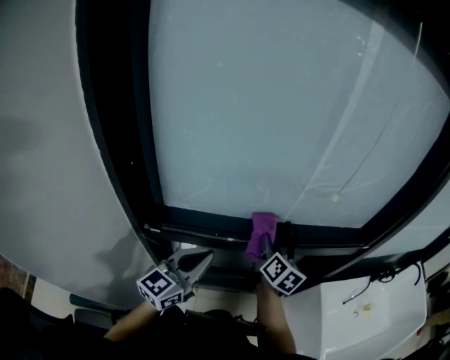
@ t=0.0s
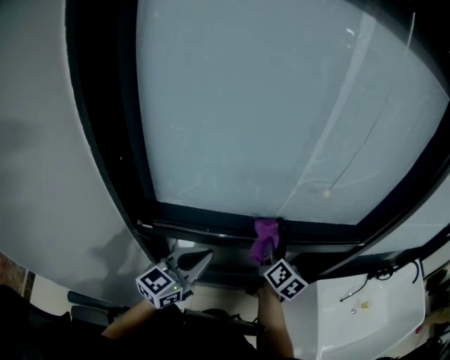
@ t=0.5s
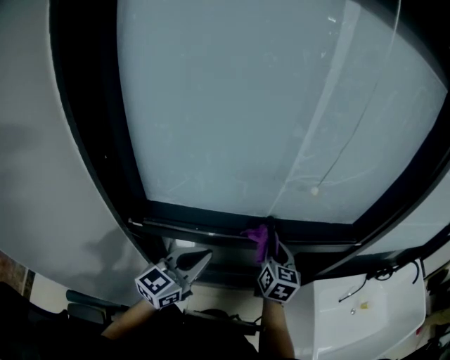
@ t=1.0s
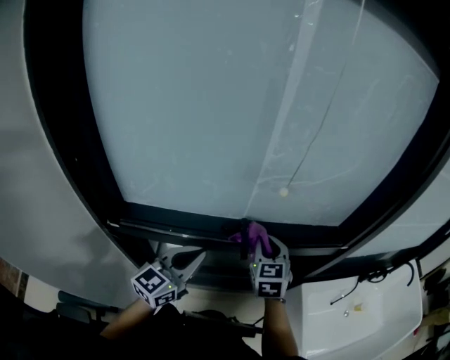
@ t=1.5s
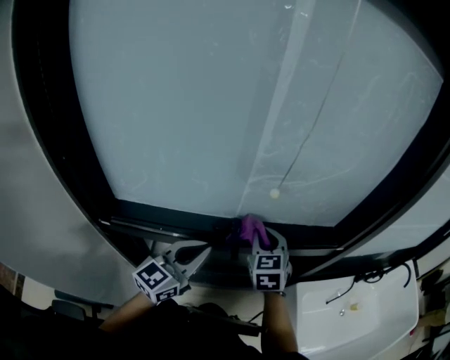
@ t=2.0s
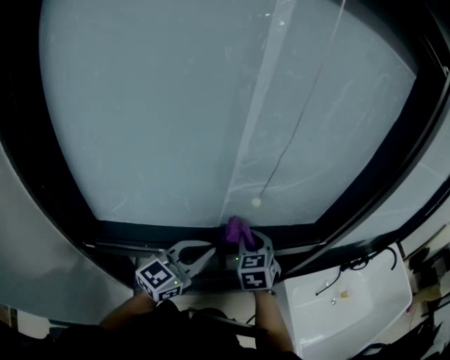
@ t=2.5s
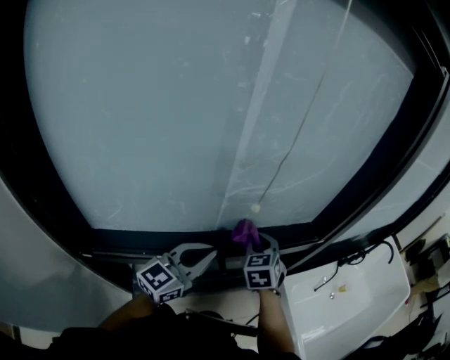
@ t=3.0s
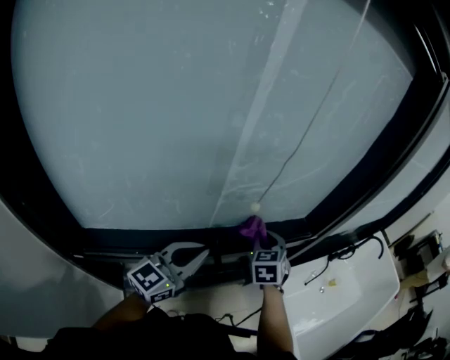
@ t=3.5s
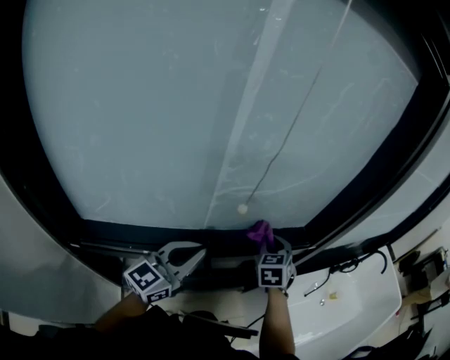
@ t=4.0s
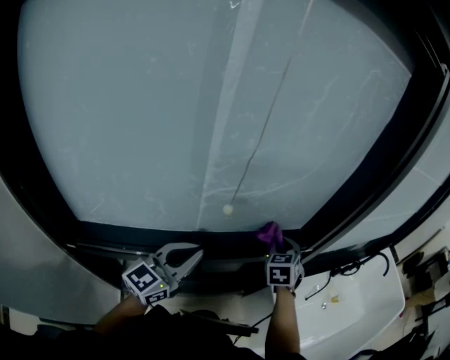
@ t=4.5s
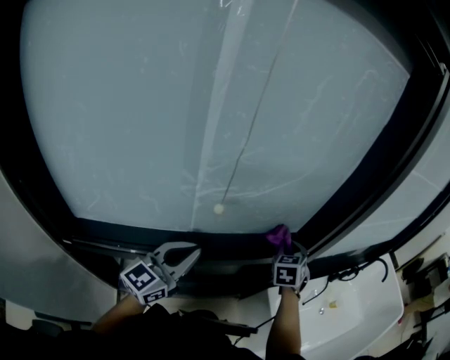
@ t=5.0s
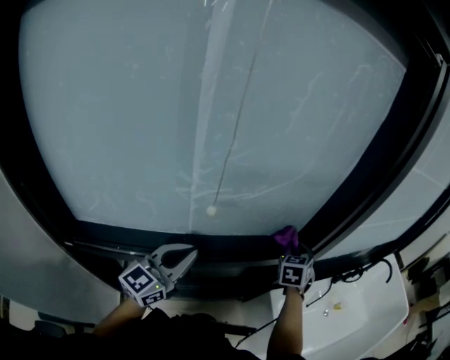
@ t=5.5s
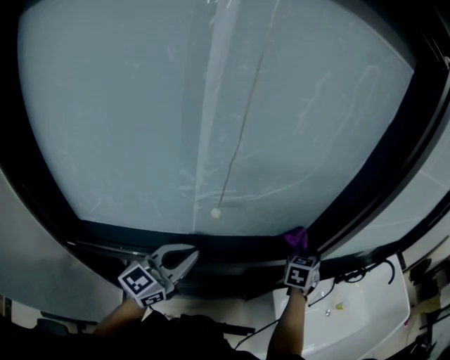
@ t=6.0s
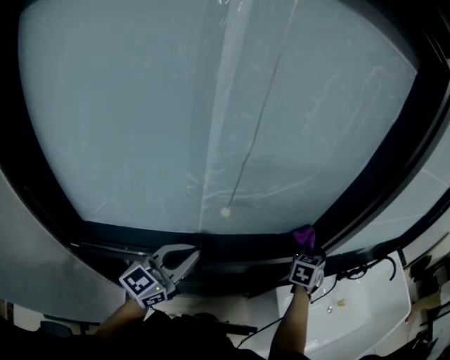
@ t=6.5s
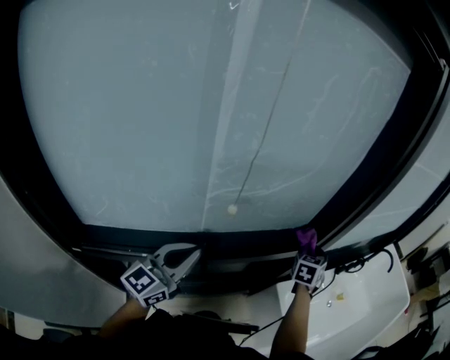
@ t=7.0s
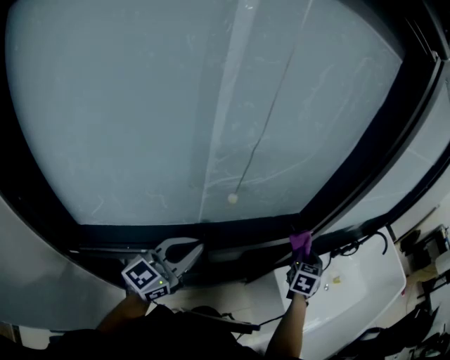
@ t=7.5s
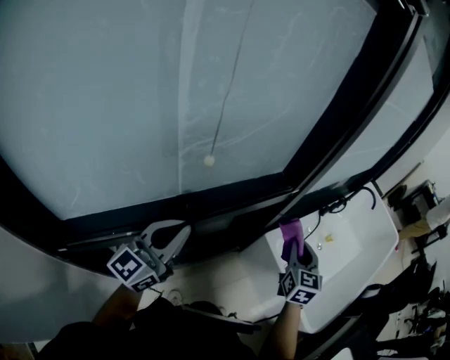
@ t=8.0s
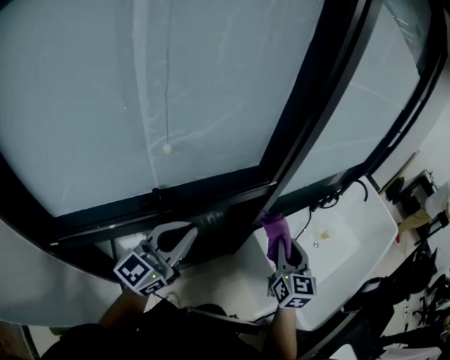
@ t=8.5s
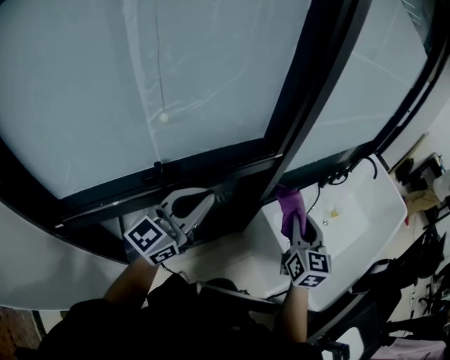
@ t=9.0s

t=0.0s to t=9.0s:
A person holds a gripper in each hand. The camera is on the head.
t=0.0s to t=2.0s: The two grippers go about 15 cm to the right and forward. The right gripper rolls counterclockwise, seen from behind, by roughly 50 degrees.
t=2.0s to t=4.5s: The right gripper is displaced to the right and forward by approximately 20 cm, and changes its angle by about 20 degrees. The left gripper heads forward, covering approximately 5 cm.
t=4.5s to t=7.0s: The right gripper heads to the right and forward, covering some 15 cm, and swivels roughly 20 degrees.
t=7.0s to t=9.0s: The left gripper moves to the right, roughly 15 cm. The right gripper travels backward and to the right by roughly 25 cm, and changes its angle by approximately 30 degrees.

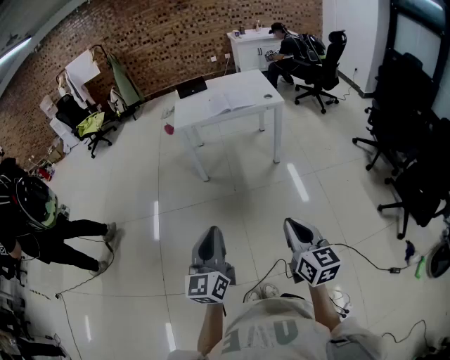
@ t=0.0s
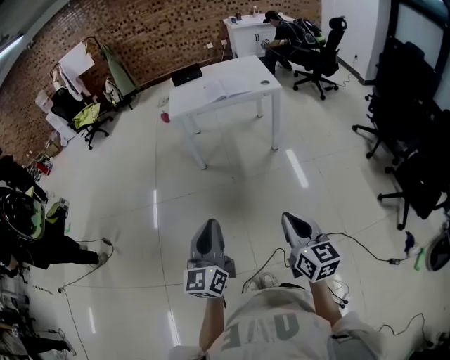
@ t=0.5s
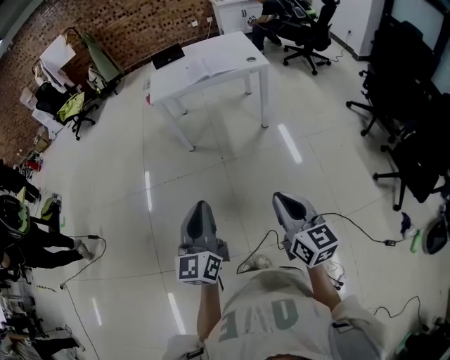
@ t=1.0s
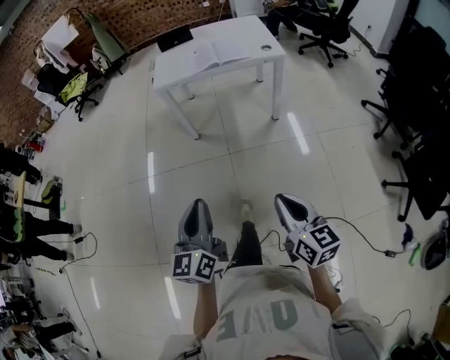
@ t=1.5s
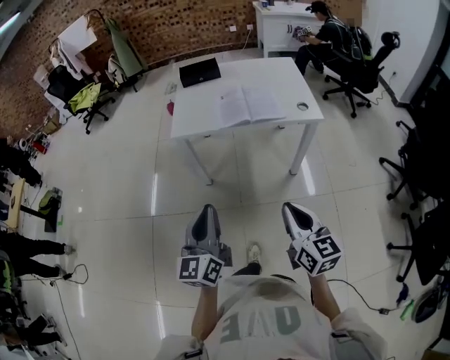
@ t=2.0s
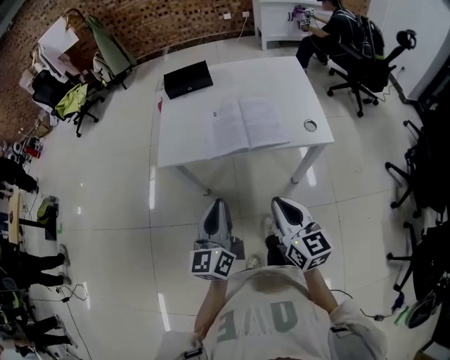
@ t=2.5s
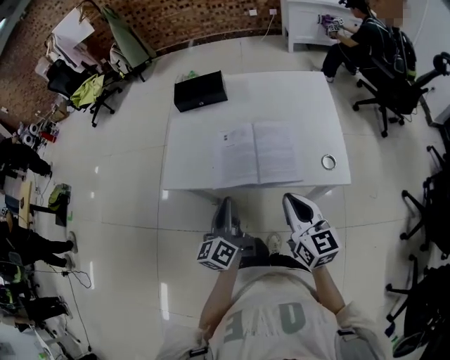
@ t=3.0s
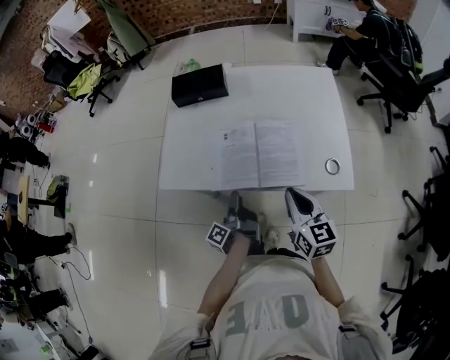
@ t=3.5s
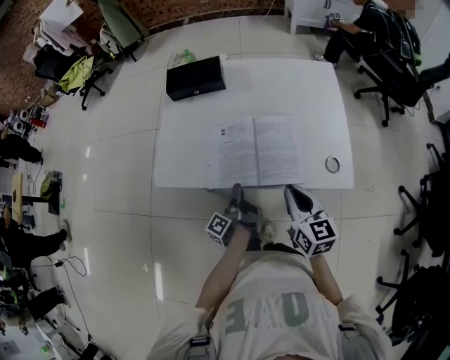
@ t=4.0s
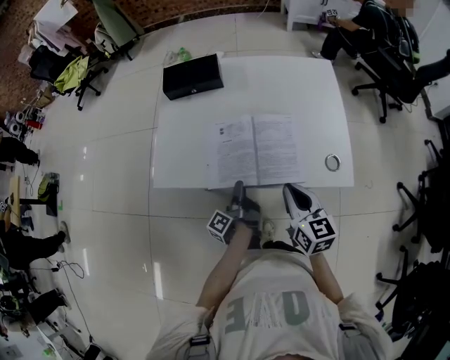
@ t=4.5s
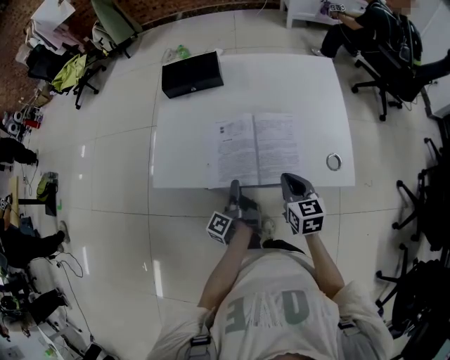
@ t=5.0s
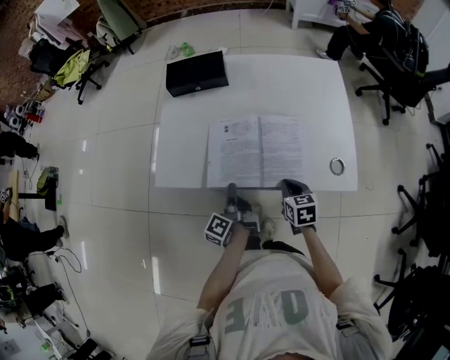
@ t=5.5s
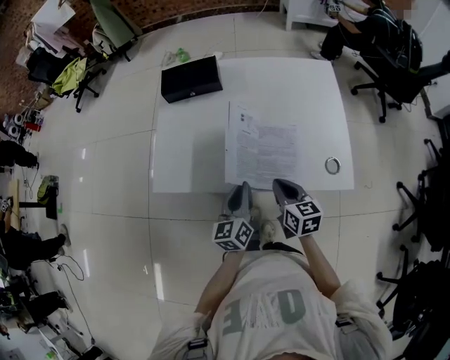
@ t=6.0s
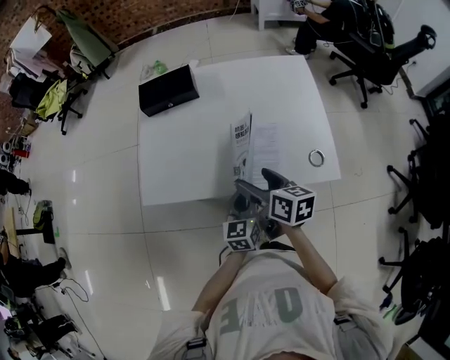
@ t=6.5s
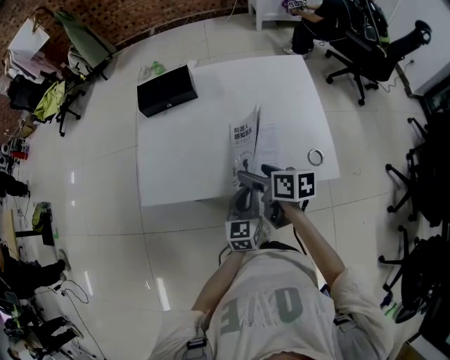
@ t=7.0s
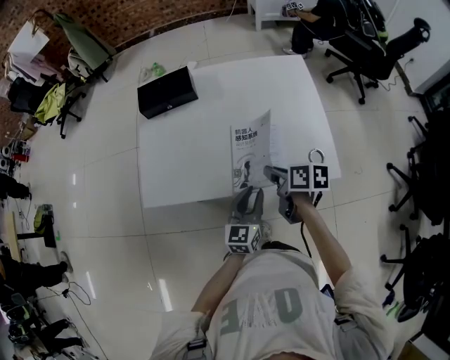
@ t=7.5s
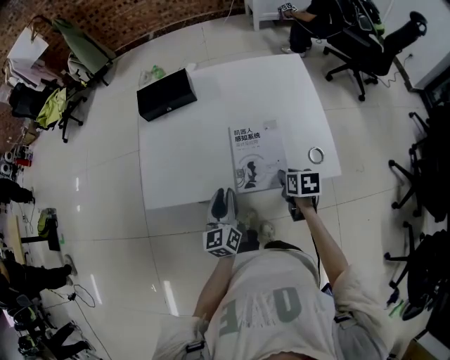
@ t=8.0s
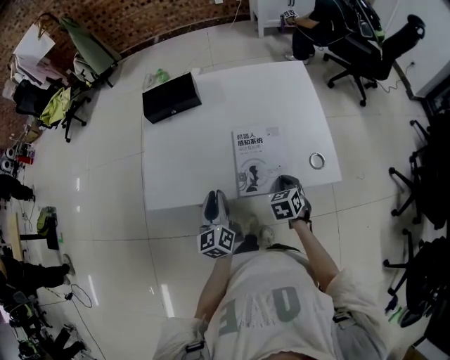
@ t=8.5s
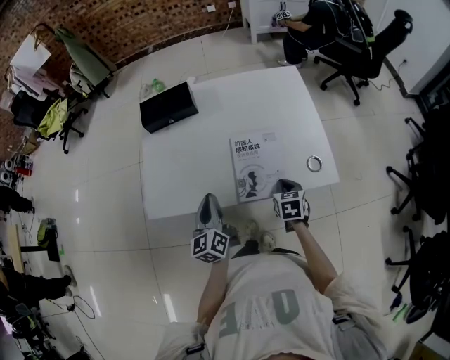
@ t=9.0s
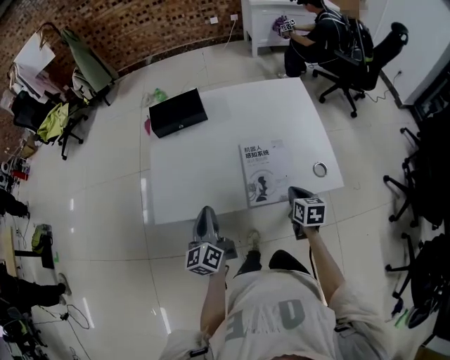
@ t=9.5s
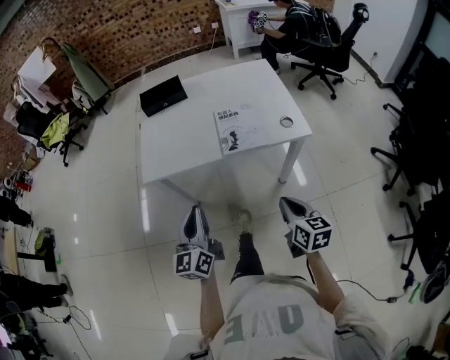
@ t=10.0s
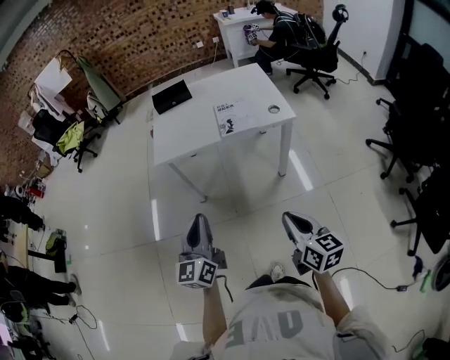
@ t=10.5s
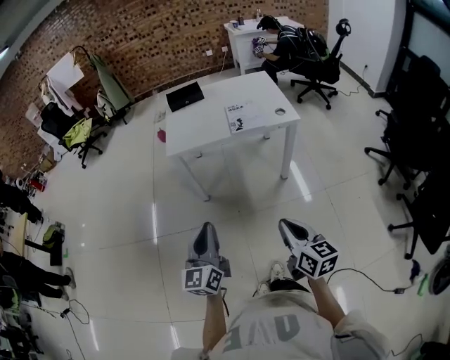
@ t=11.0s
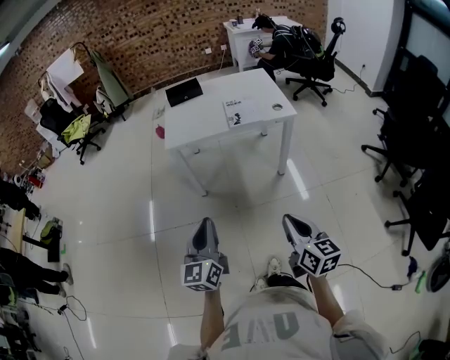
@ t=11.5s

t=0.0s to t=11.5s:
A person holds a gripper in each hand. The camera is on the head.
t=0.0s to t=2.0s: The two grippers travel together, forward, some 40 cm.
t=2.0s to t=4.0s: The pair of grippers is taken forward, approximately 40 cm. The left gripper goes approximately 25 cm downward, rotates around the line of its fingers by approximately 80 degrees, counterclockwise from behind, and opens up.
t=4.0s to t=6.0s: The left gripper shifts roughly 10 cm upward, rolls clockwise, seen from behind, by some 70 degrees, and closes up. The right gripper shifts roughly 10 cm downward.
t=6.0s to t=7.5s: The right gripper changes its angle by approximately 30 degrees, and opens and closes again. The left gripper shifts roughly 10 cm to the right, and changes its angle by about 20 degrees.
t=7.5s to t=9.5s: The left gripper shifts roughly 20 cm to the left, changes its angle by roughly 30 degrees, and closes; the right gripper travels downward and to the right by approximately 10 cm, and rotates some 30 degrees.
t=9.5s to t=11.5s: The pair of grippers is taken backward, approximately 60 cm. The right gripper angles its fingers upward, by roughly 30 degrees. Meanwhile the left gripper swivels some 20 degrees.

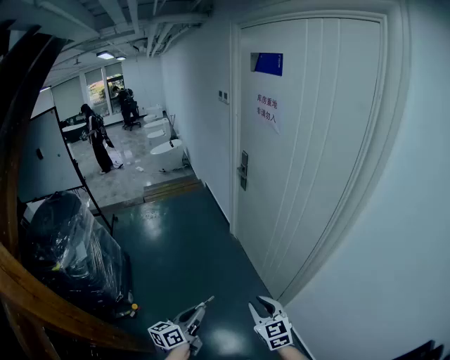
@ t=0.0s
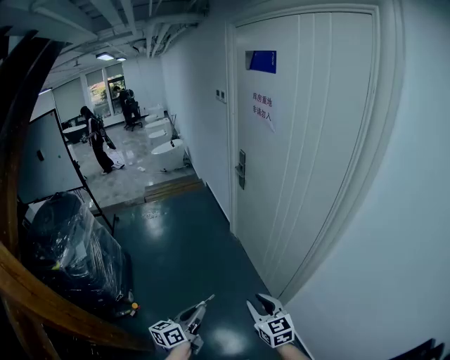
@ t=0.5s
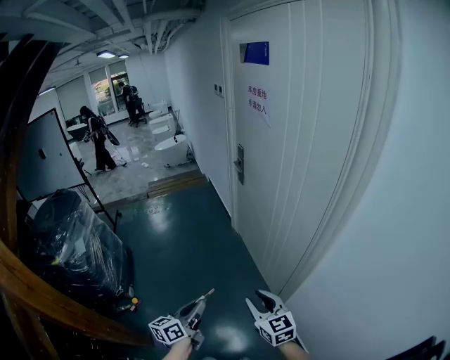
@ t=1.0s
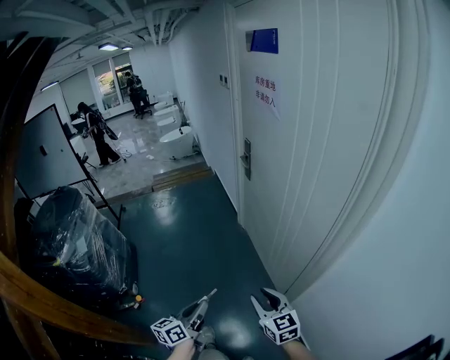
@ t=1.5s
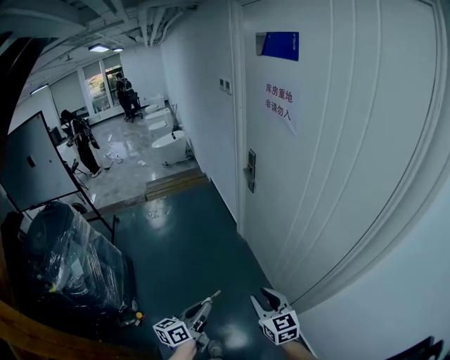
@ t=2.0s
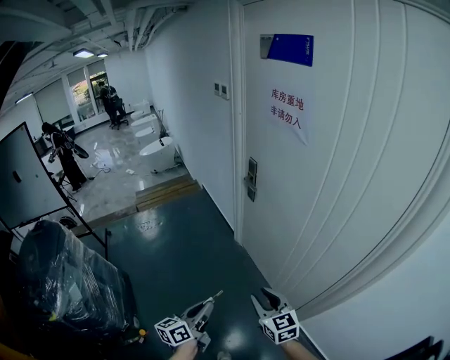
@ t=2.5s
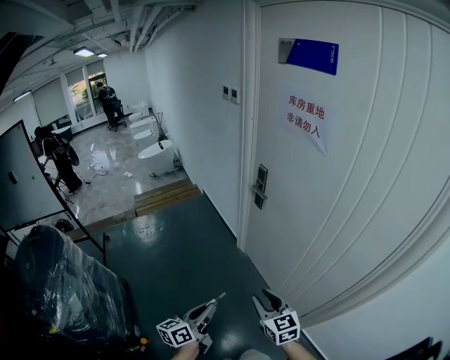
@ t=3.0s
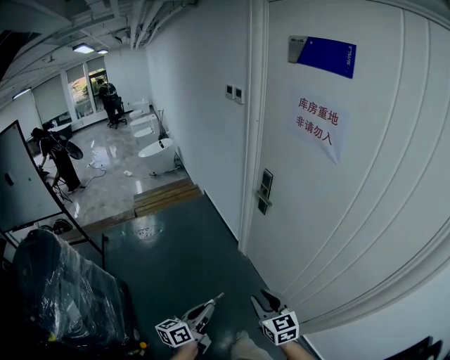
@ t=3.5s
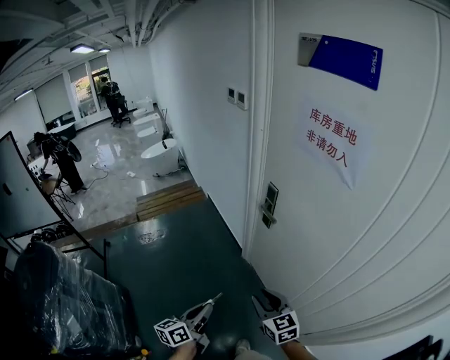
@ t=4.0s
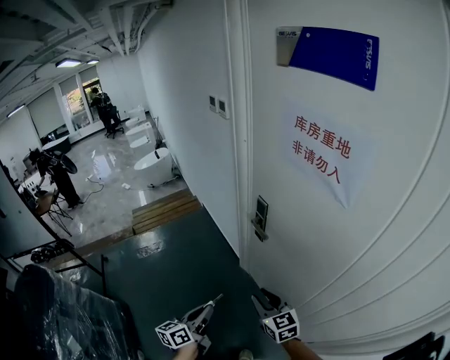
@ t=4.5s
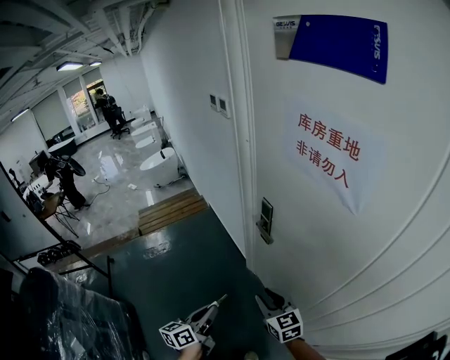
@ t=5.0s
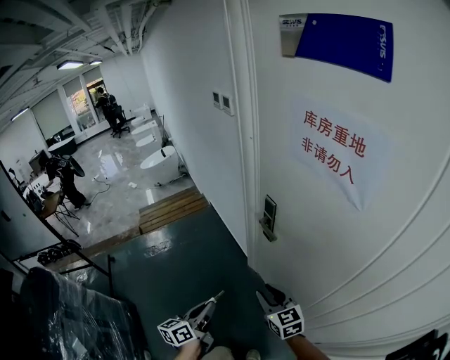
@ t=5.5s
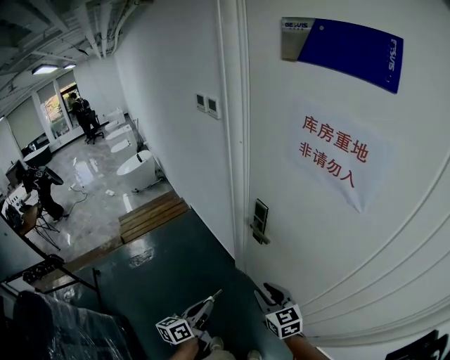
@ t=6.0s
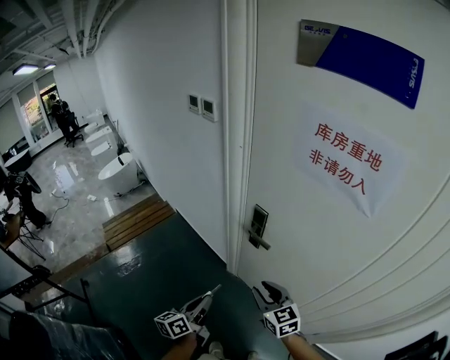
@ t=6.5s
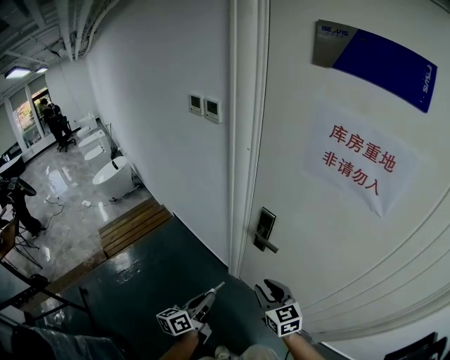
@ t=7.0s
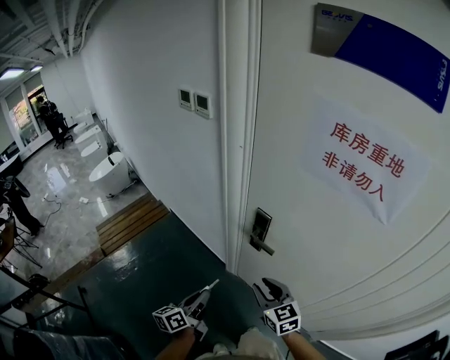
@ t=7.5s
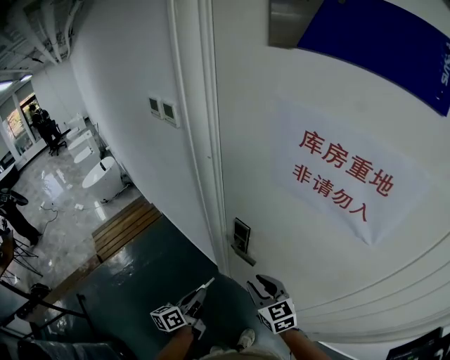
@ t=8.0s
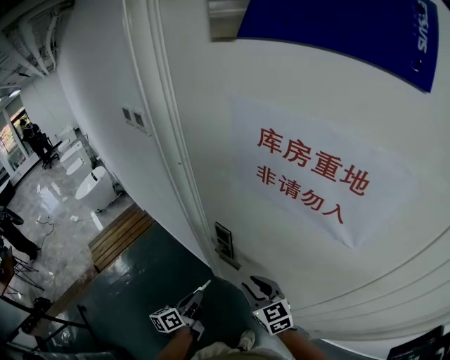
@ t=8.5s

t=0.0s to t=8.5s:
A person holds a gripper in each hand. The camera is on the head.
t=0.0s to t=2.0s: The two grippers go roughly 15 cm forward.
t=2.0s to t=4.0s: The grippers both shift forward and to the left by approximately 30 cm.
t=4.0s to t=6.5s: Both grippers move forward, roughly 20 cm.
t=6.5s to t=8.5s: The right gripper goes about 15 cm forward and to the right. Meanwhile the left gripper heads forward, covering roughly 15 cm.
